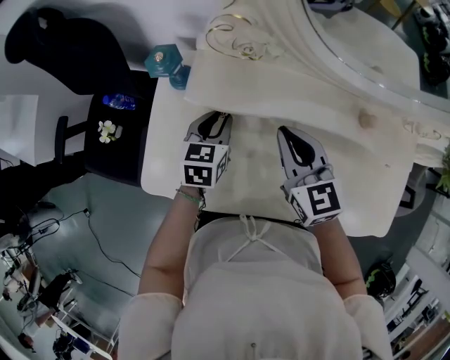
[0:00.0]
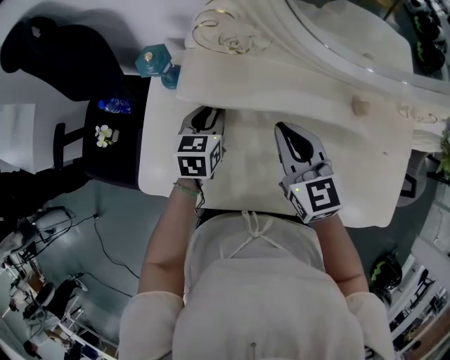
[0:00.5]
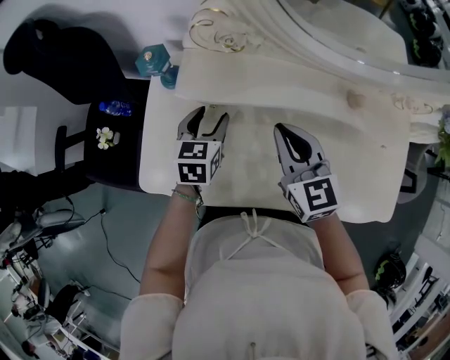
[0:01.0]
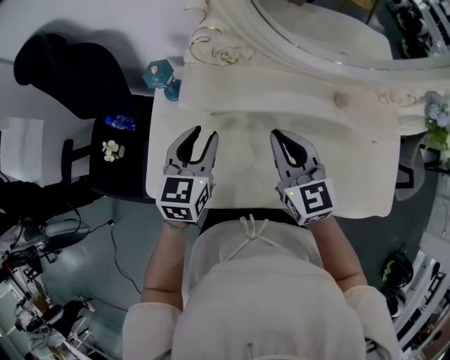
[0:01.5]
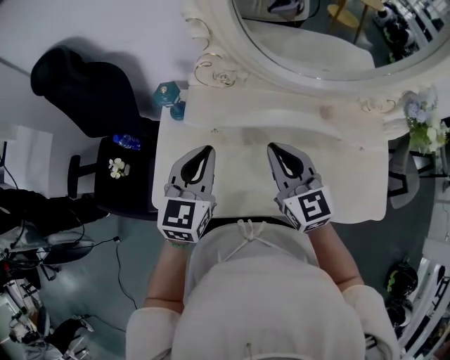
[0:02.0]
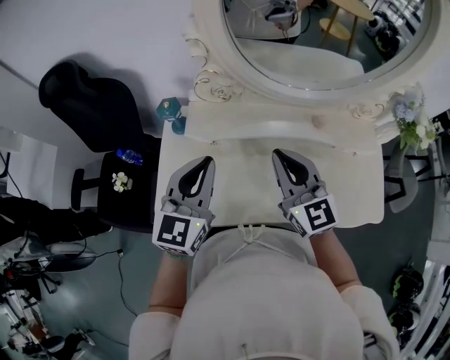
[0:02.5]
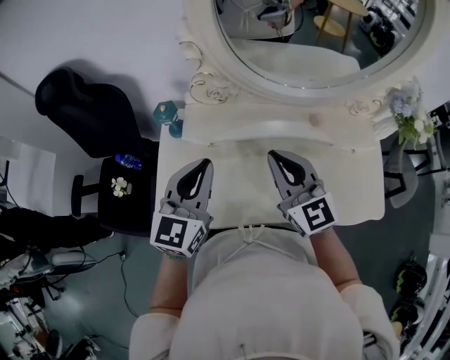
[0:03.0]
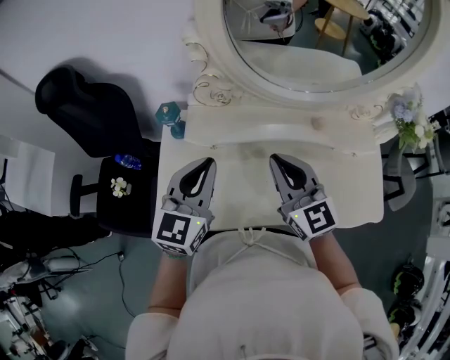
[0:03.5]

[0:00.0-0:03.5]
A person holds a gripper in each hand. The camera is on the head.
0.0 to 2.0 s: The right gripper is displaced upward and backward by roughly 10 cm, while the left gripper moves upward and backward, about 25 cm, swivels approximately 30 degrees, and opens and closes again.
2.0 to 3.5 s: The left gripper moves some 5 cm.

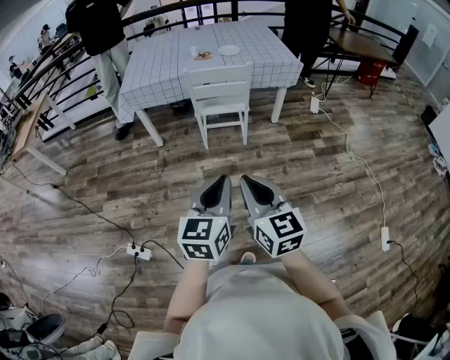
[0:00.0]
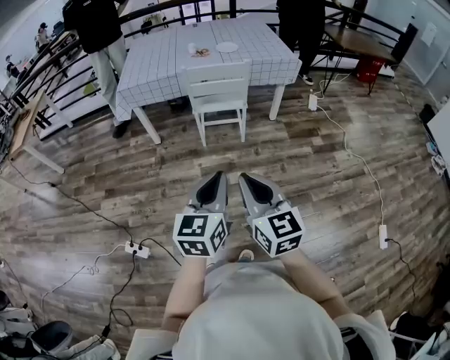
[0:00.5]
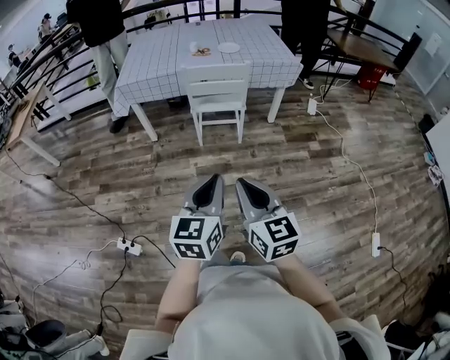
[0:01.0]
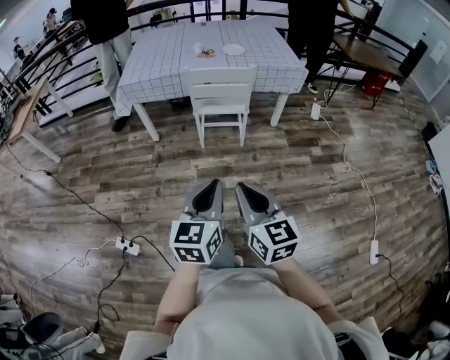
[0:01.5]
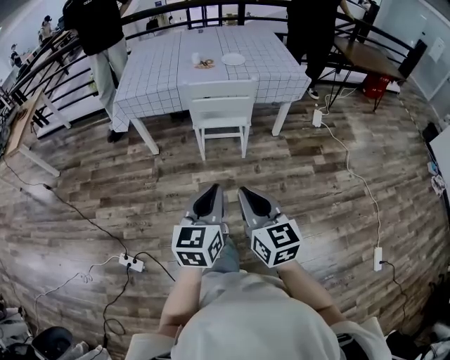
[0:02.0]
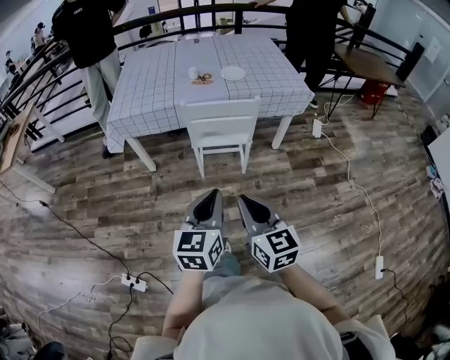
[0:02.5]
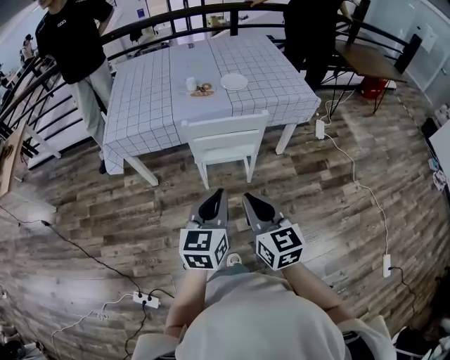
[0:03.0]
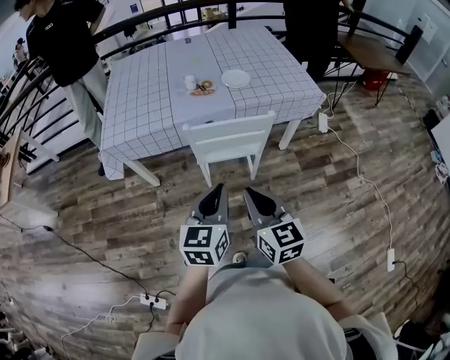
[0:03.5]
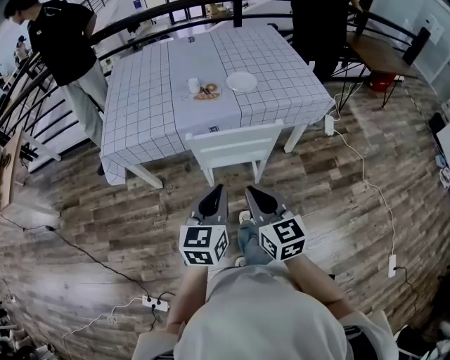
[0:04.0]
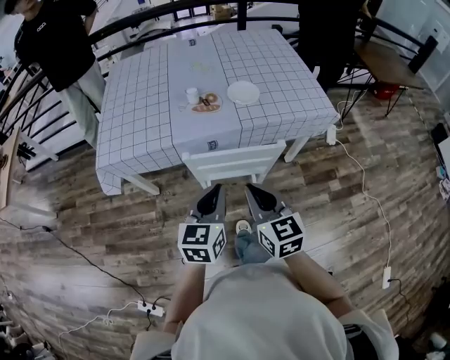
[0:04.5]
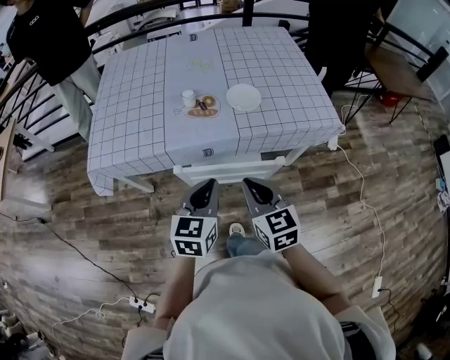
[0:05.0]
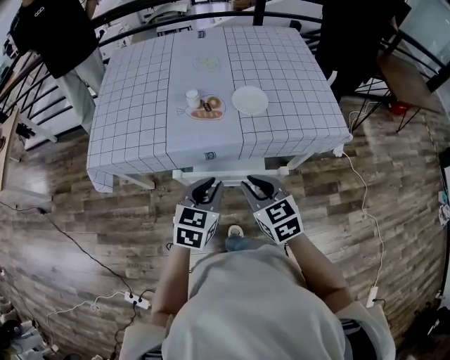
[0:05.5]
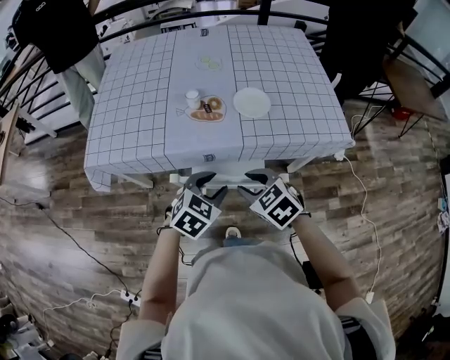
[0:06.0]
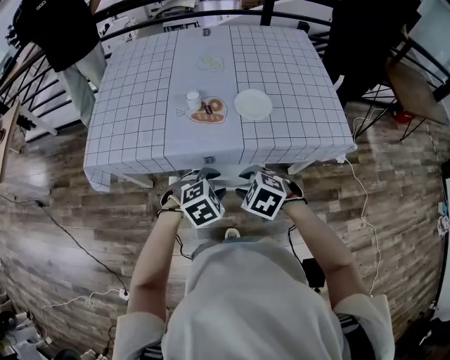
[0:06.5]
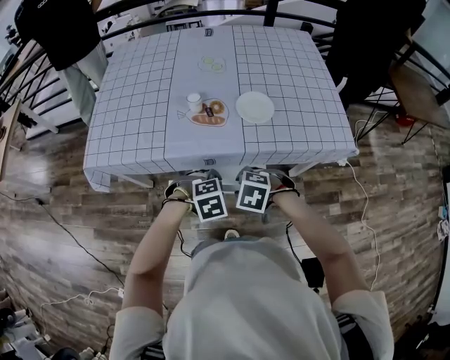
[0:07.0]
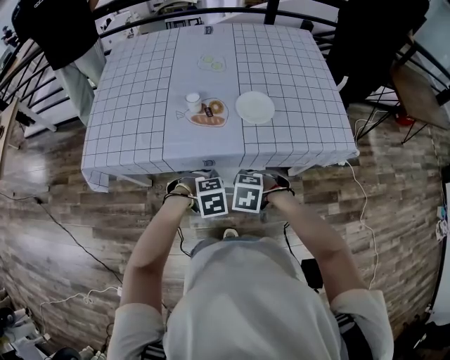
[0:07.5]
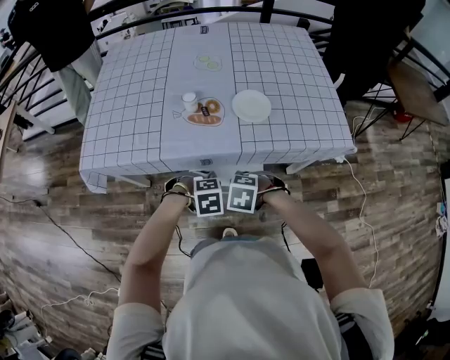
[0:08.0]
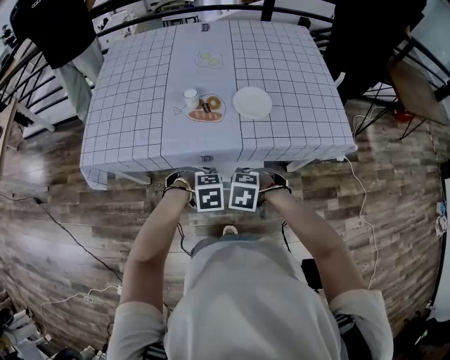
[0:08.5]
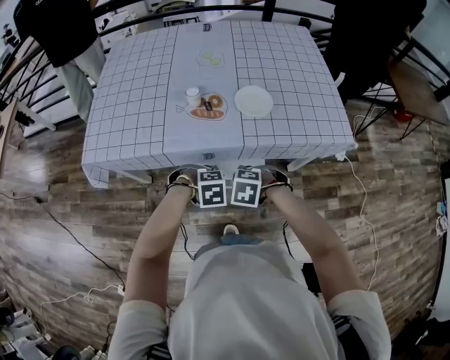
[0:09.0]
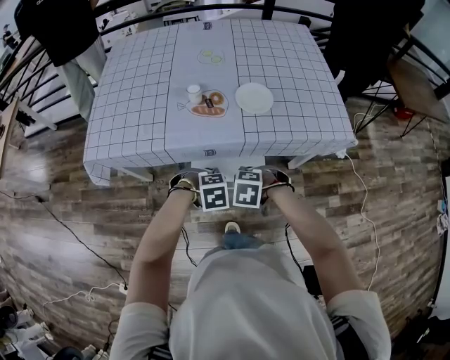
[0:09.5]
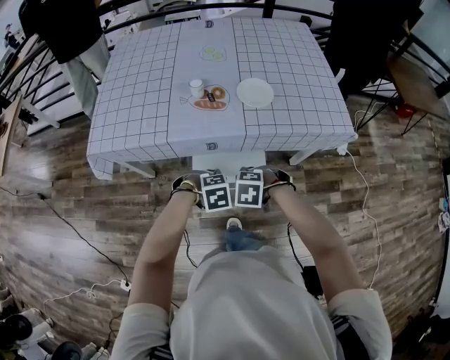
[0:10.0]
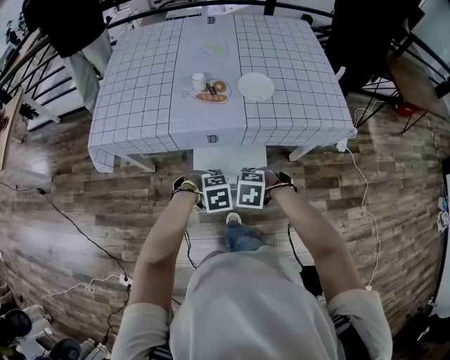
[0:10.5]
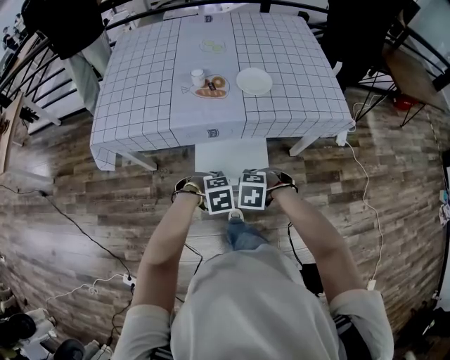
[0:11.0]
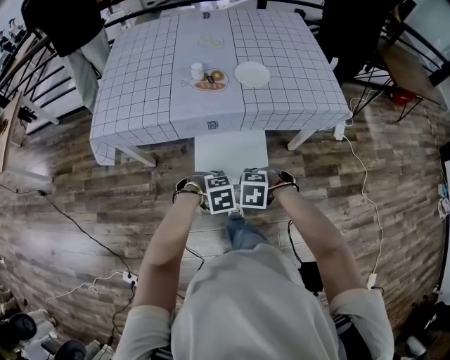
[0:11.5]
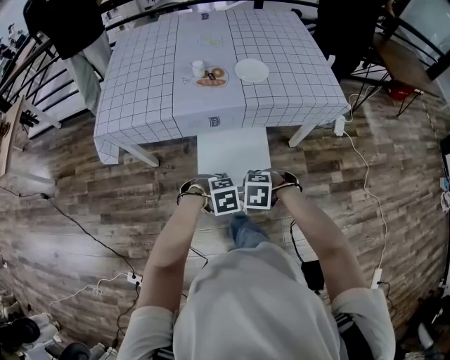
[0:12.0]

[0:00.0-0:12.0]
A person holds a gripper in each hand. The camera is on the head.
0.0 to 2.0 s: Both grippers move forward, about 10 cm.
2.0 to 4.0 s: The two grippers go about 35 cm forward.
4.0 to 6.0 s: Both grippers move forward and downward, about 25 cm. The right gripper tilts its fingers roughly 30 degrees downward, and opens its fingers. Meanwhile the left gripper swivels approximately 40 degrees, and opens.
6.0 to 8.0 s: Both grippers move downward, approximately 10 cm. The right gripper changes its angle by approximately 40 degrees. The left gripper points its fingers some 30 degrees further downward.
8.0 to 10.0 s: The right gripper shifts by about 5 cm; the left gripper changes place by approximately 5 cm.
10.0 to 12.0 s: The right gripper changes place by some 15 cm, while the left gripper shifts by approximately 15 cm.

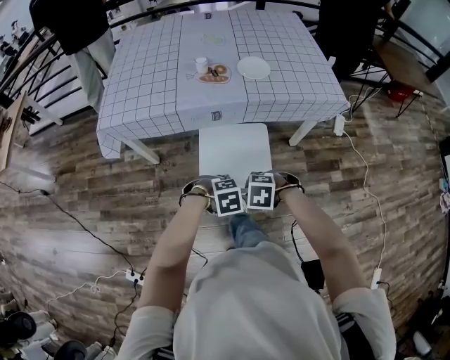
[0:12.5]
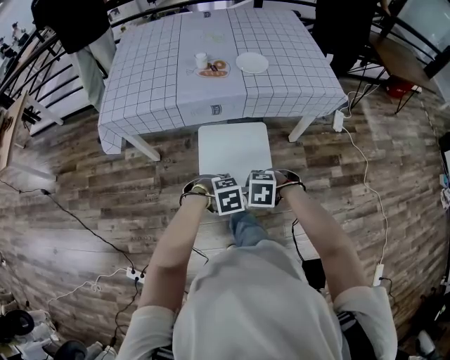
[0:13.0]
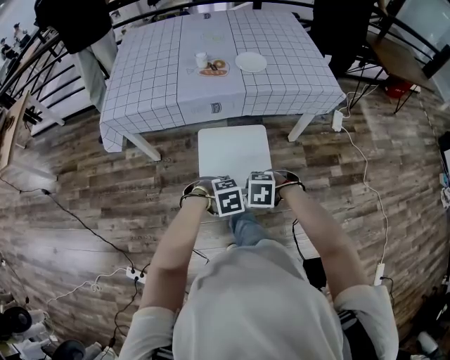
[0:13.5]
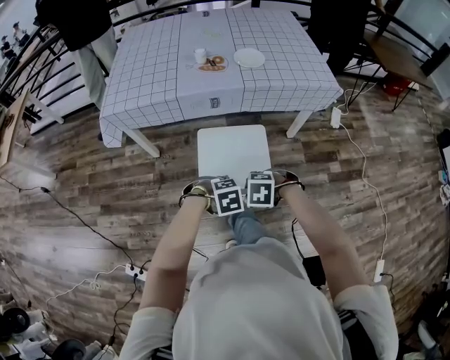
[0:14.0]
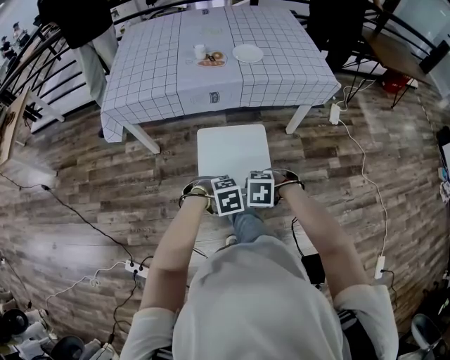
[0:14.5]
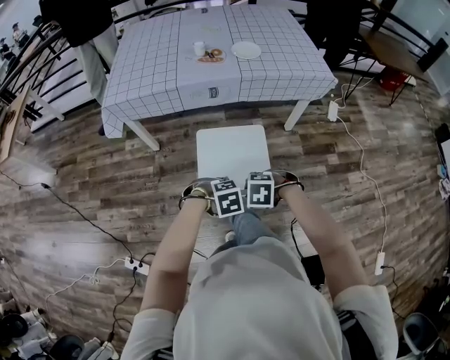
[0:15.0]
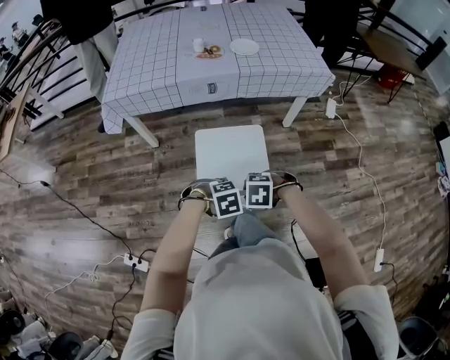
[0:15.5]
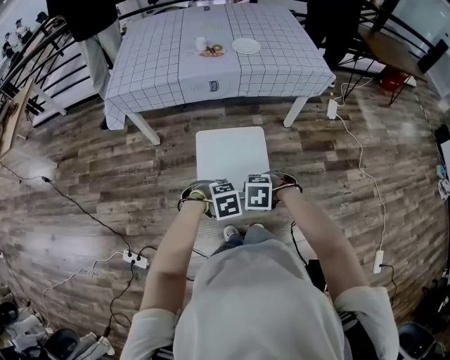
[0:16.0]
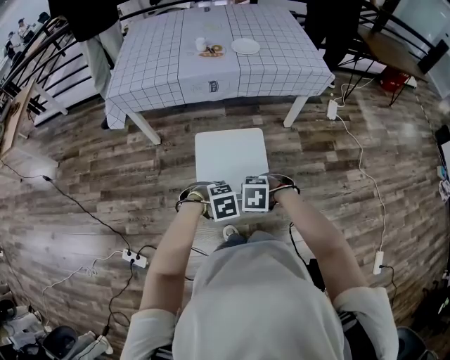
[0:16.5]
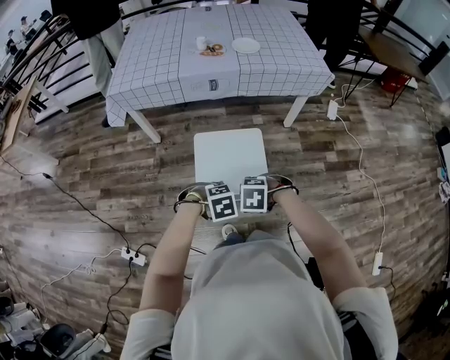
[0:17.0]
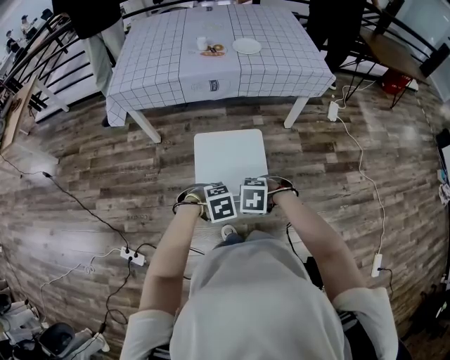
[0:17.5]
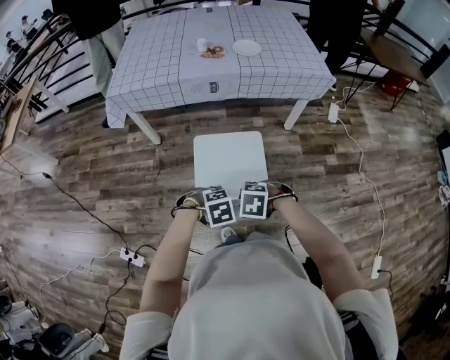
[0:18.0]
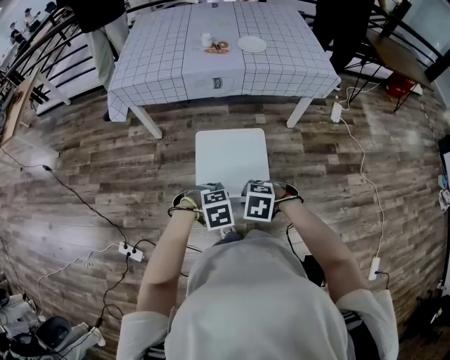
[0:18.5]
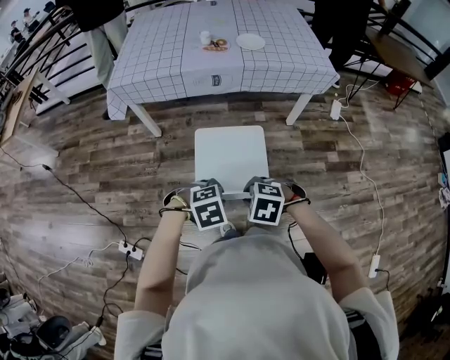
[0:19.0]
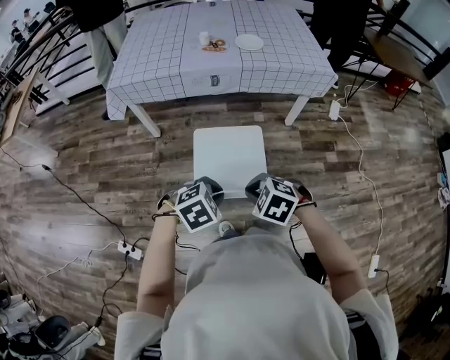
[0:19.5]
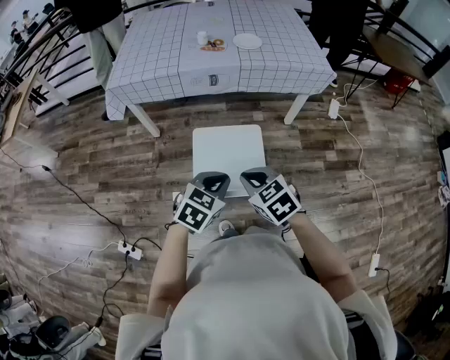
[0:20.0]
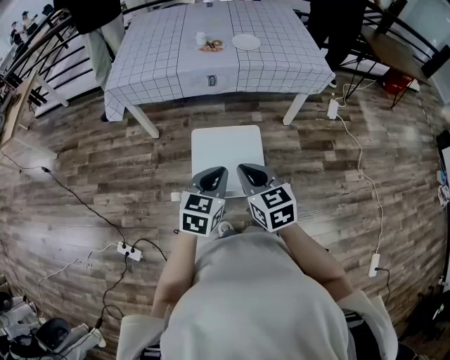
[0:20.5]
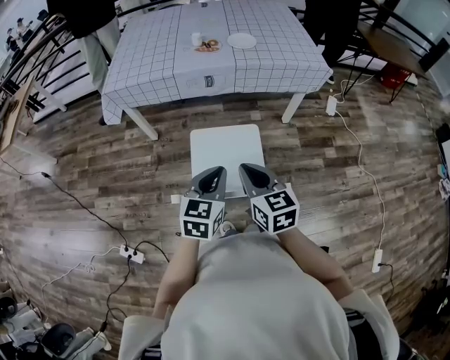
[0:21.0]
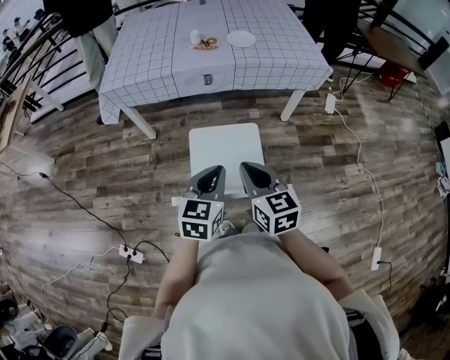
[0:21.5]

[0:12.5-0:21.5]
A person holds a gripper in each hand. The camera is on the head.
12.5 to 14.5 s: The left gripper ends up approximately 10 cm from where it was, while the right gripper changes place by about 10 cm.
14.5 to 17.0 s: The right gripper ends up about 10 cm from where it was; the left gripper ends up approximately 10 cm from where it was.
17.0 to 19.5 s: Both grippers move upward, roughly 10 cm. The right gripper swivels roughly 20 degrees, while the left gripper rotates about 20 degrees.
19.5 to 21.5 s: The right gripper heads upward and forward, covering some 10 cm, and points its fingers some 40 degrees further upward. The left gripper shifts roughly 10 cm forward and upward, and angles its fingers upward, by about 40 degrees.

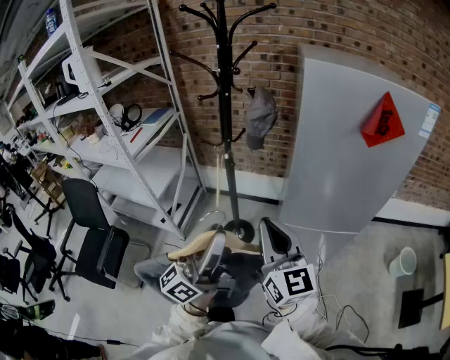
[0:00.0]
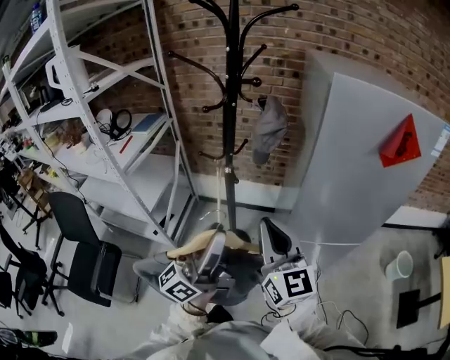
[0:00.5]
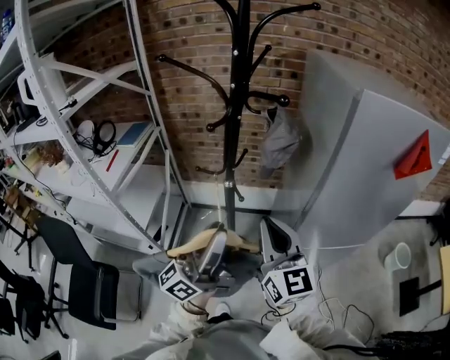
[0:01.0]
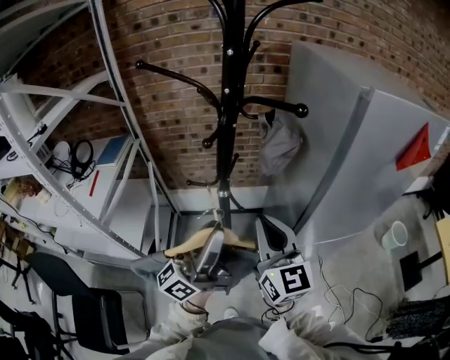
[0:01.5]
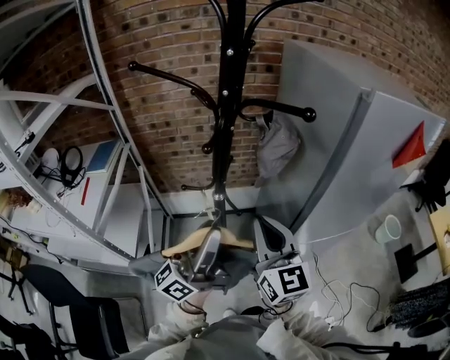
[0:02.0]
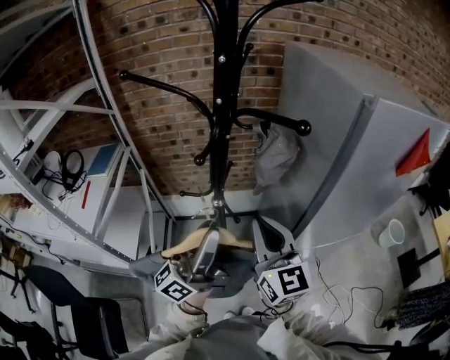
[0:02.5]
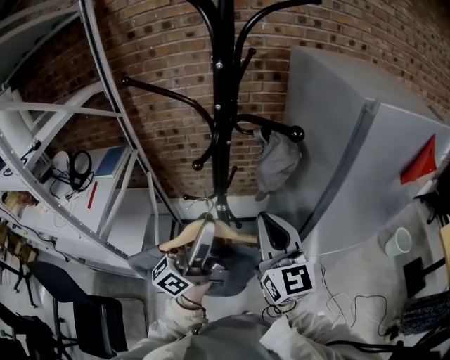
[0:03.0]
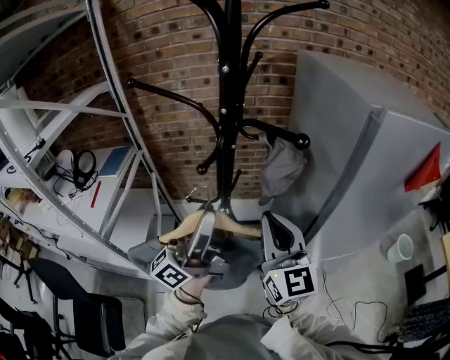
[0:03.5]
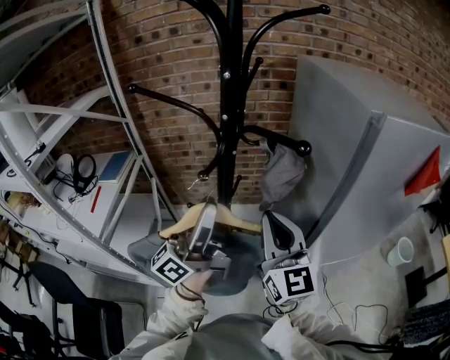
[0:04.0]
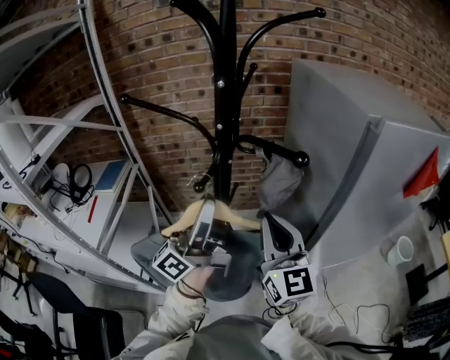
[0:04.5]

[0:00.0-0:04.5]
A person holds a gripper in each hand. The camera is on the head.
0.0 to 2.0 s: Both grippers move forward and to the left, roughly 35 cm. The left gripper rotates approximately 20 degrees. The right gripper changes its angle by some 20 degrees.
2.0 to 4.5 s: The right gripper goes about 10 cm forward. Meanwhile the left gripper travels forward and upward by approximately 15 cm.
